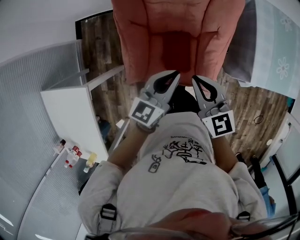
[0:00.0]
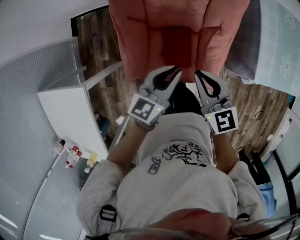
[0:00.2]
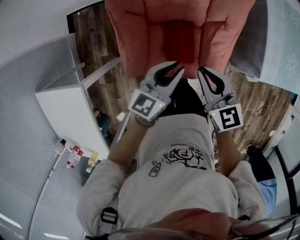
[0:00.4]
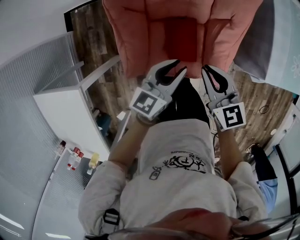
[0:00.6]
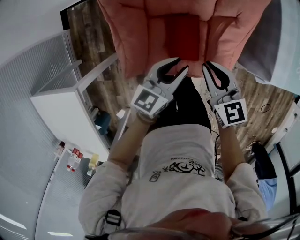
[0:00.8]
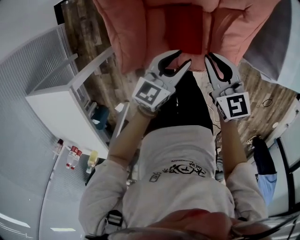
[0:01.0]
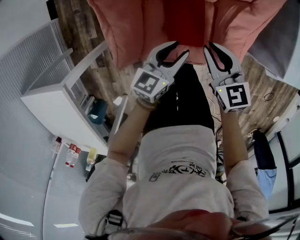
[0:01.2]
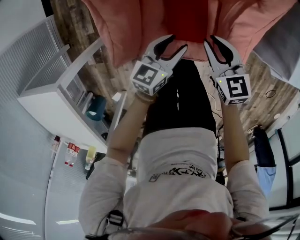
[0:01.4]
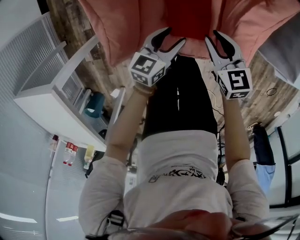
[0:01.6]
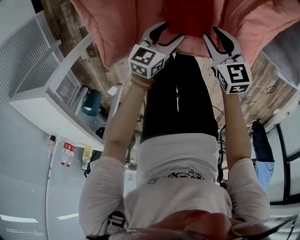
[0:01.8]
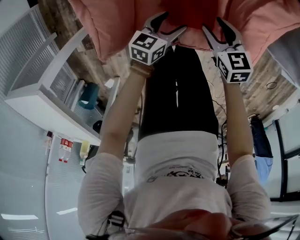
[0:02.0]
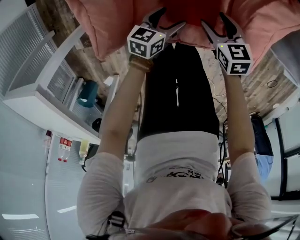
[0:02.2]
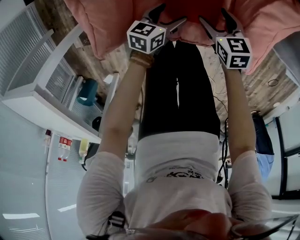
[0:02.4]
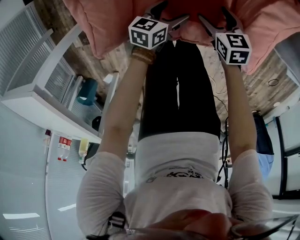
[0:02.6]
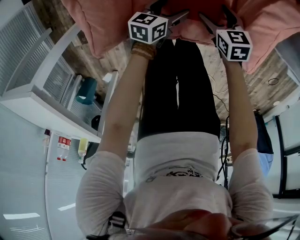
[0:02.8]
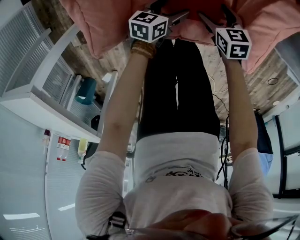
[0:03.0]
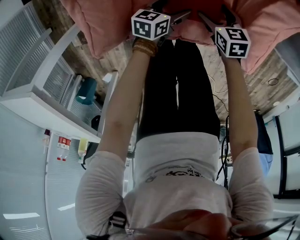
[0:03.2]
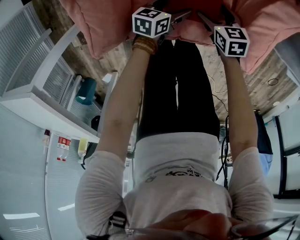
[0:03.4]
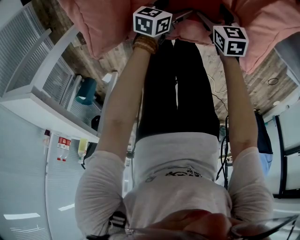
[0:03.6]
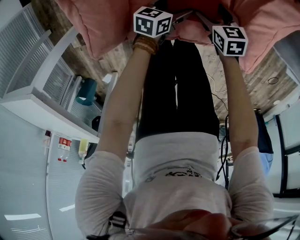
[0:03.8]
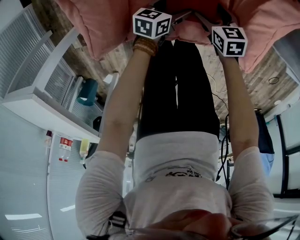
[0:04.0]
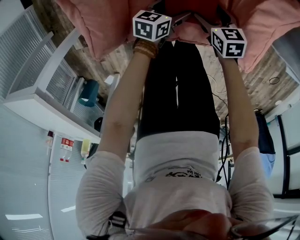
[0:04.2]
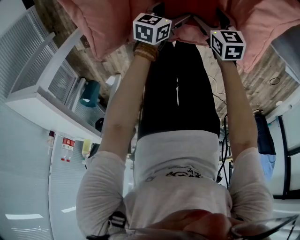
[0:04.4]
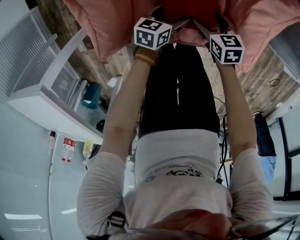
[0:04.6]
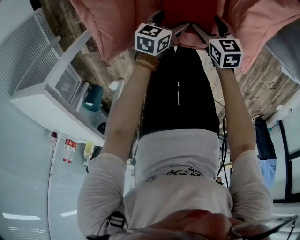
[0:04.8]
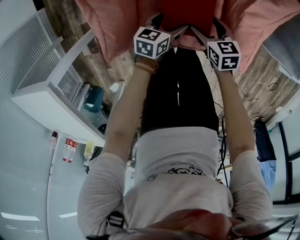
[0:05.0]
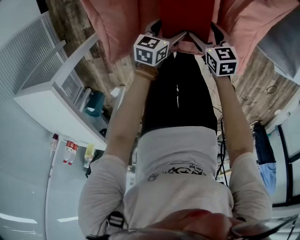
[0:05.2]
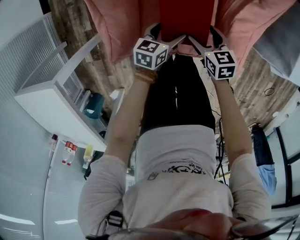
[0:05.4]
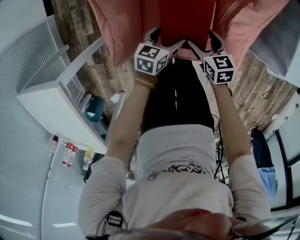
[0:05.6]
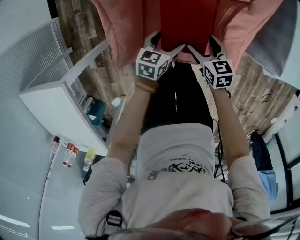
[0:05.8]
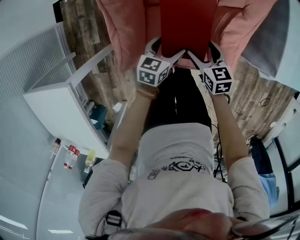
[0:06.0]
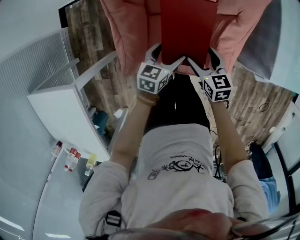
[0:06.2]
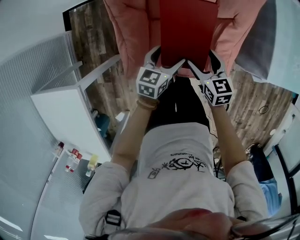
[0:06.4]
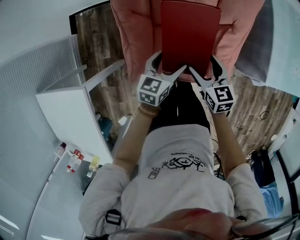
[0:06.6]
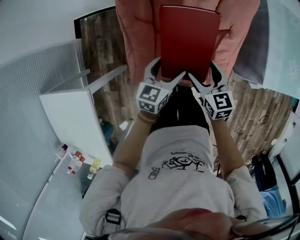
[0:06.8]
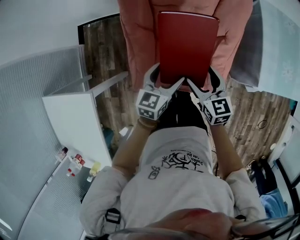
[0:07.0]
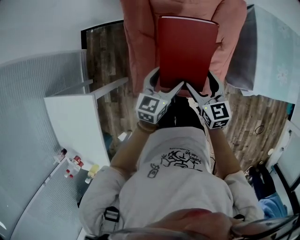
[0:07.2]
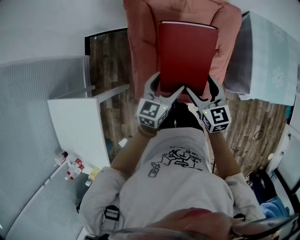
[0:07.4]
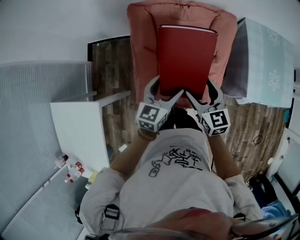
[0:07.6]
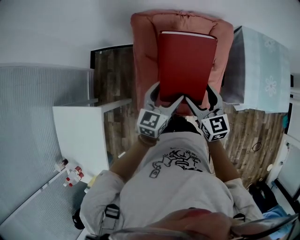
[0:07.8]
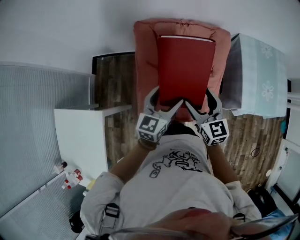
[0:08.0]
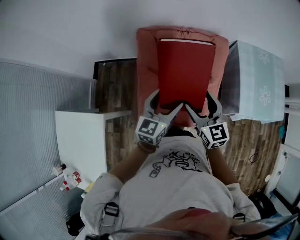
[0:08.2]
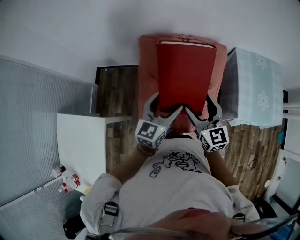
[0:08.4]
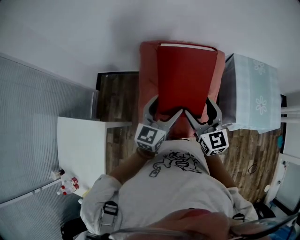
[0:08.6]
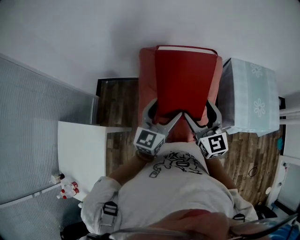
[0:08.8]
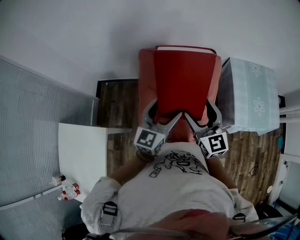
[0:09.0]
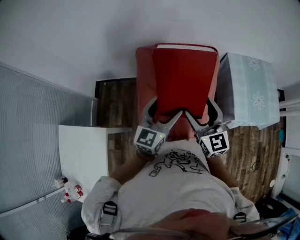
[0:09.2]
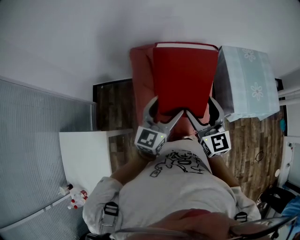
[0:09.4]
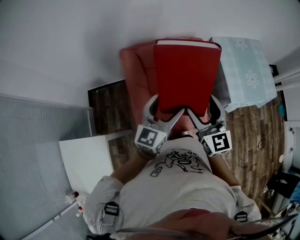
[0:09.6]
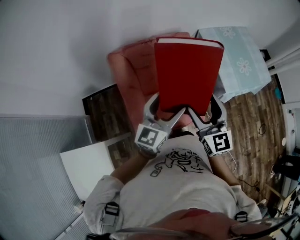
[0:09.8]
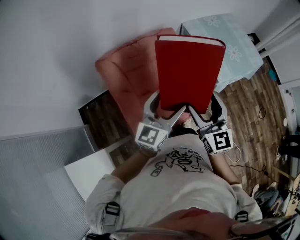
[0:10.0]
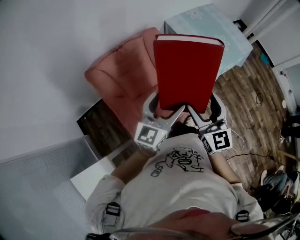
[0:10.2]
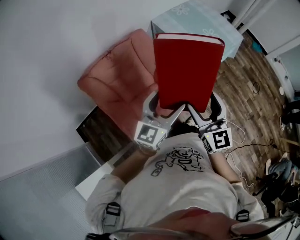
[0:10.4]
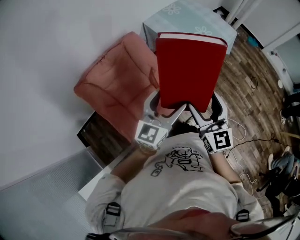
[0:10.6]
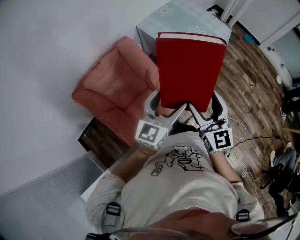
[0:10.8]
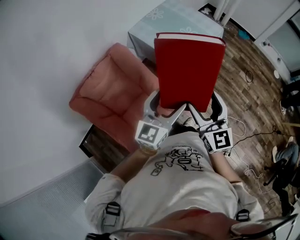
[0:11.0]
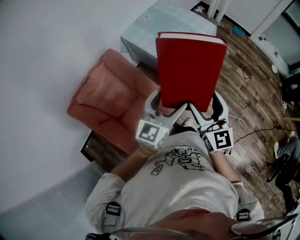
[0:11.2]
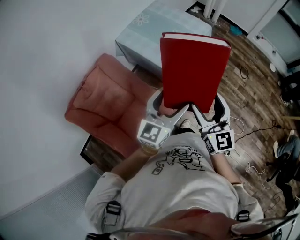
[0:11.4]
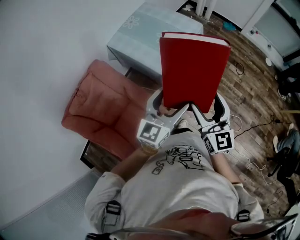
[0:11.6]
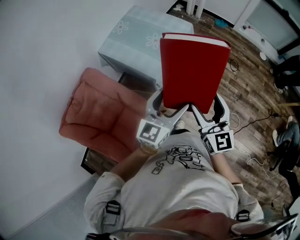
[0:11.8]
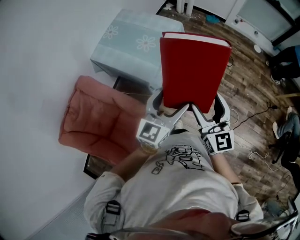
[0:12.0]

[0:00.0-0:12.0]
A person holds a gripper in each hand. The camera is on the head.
0:00.0 to 0:01.6: The grippers both shift downward by some 40 cm. The right gripper turns by approximately 20 degrees. Meanwhile the left gripper changes its angle by about 20 degrees, and opens.
0:01.6 to 0:03.0: Both grippers travel together downward, some 20 cm. The right gripper opens, while the left gripper opens up.
0:03.0 to 0:04.4: There are only small adjustments of the grippers.
0:04.4 to 0:06.0: Both grippers travel together upward, some 25 cm.
0:06.0 to 0:07.6: The grippers both shift upward by approximately 40 cm. The right gripper changes its angle by approximately 20 degrees. The left gripper changes its angle by roughly 20 degrees.
0:07.6 to 0:09.0: Both grippers travel together upward, some 20 cm. The right gripper changes its angle by roughly 20 degrees.
0:09.0 to 0:10.4: The left gripper moves roughly 20 cm, and rotates some 40 degrees; the right gripper shifts by some 25 cm, and rotates approximately 40 degrees.
0:10.4 to 0:12.0: The left gripper shifts by approximately 40 cm, and swivels approximately 30 degrees. Meanwhile the right gripper changes place by some 35 cm, and changes its angle by some 30 degrees.

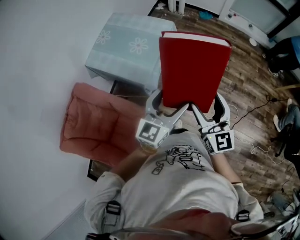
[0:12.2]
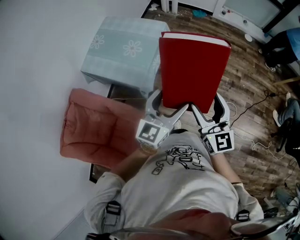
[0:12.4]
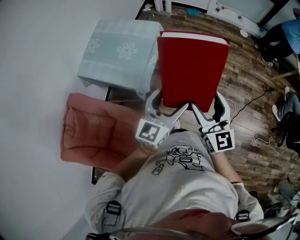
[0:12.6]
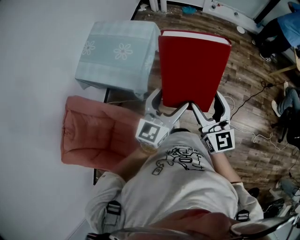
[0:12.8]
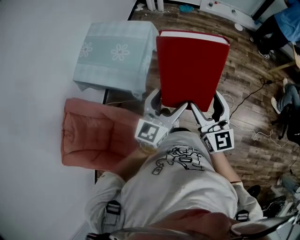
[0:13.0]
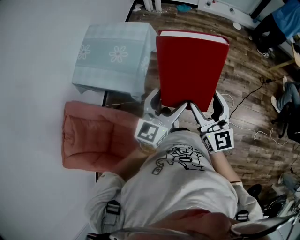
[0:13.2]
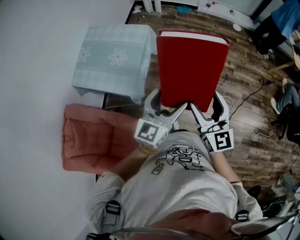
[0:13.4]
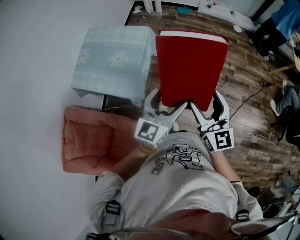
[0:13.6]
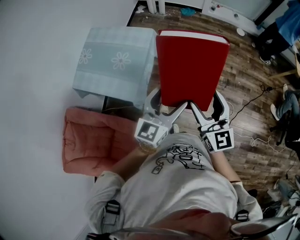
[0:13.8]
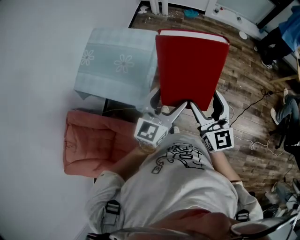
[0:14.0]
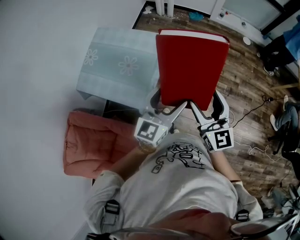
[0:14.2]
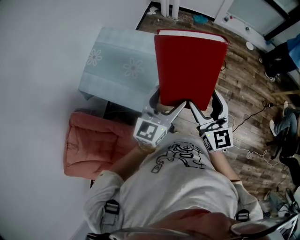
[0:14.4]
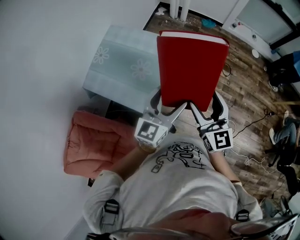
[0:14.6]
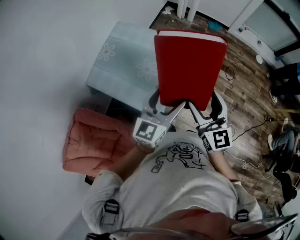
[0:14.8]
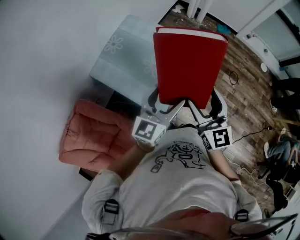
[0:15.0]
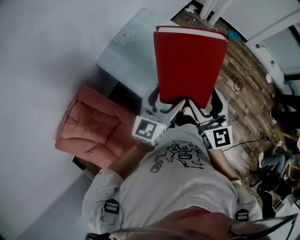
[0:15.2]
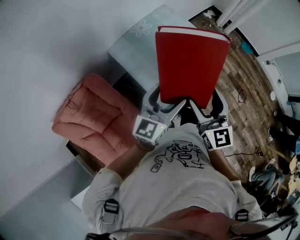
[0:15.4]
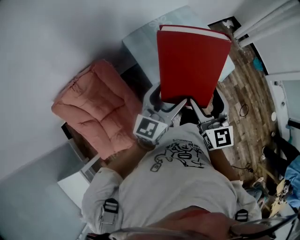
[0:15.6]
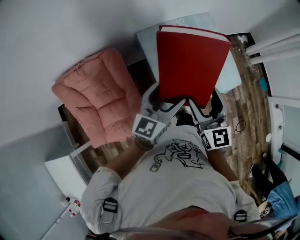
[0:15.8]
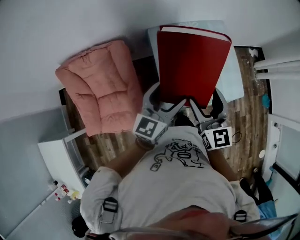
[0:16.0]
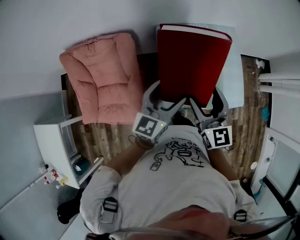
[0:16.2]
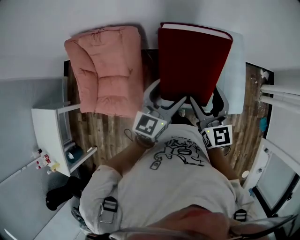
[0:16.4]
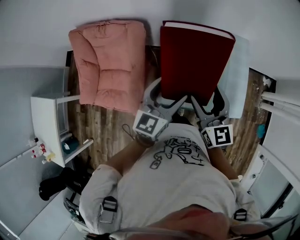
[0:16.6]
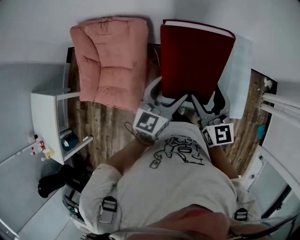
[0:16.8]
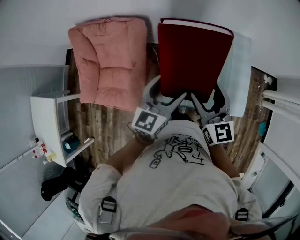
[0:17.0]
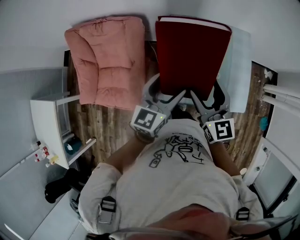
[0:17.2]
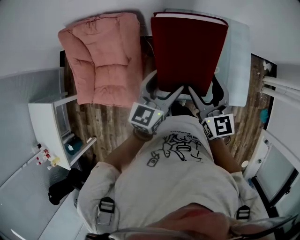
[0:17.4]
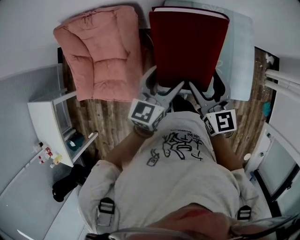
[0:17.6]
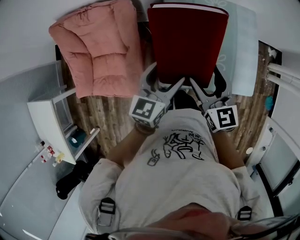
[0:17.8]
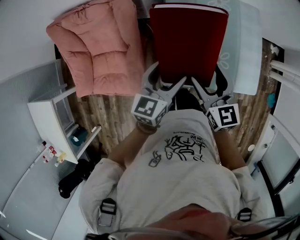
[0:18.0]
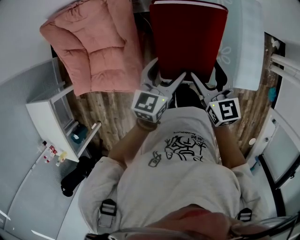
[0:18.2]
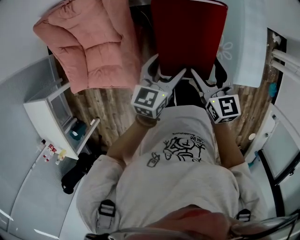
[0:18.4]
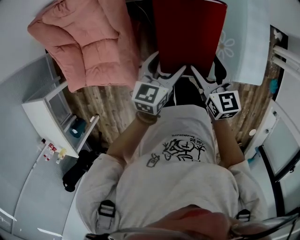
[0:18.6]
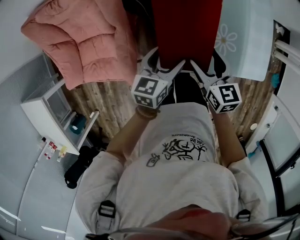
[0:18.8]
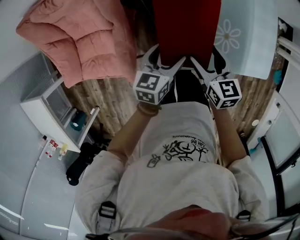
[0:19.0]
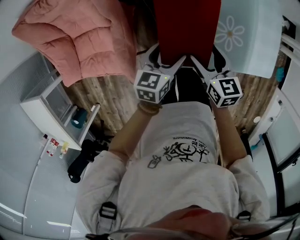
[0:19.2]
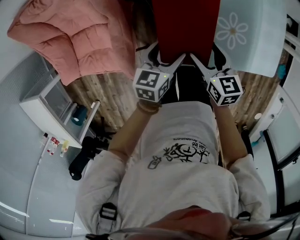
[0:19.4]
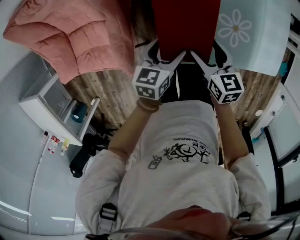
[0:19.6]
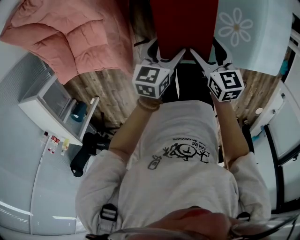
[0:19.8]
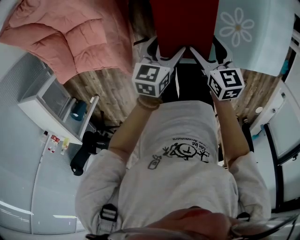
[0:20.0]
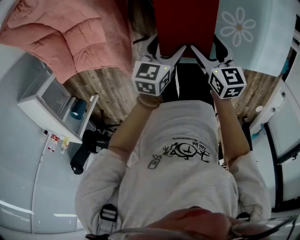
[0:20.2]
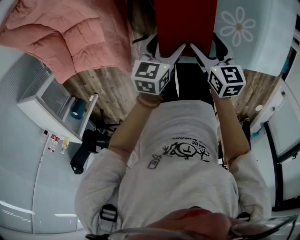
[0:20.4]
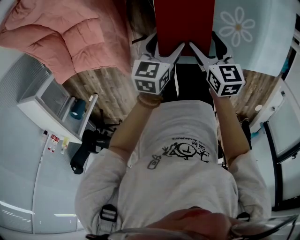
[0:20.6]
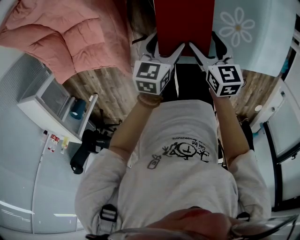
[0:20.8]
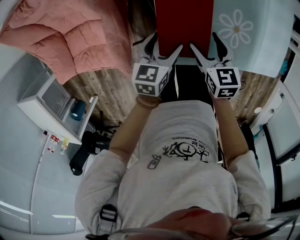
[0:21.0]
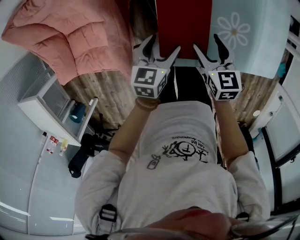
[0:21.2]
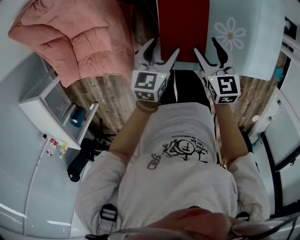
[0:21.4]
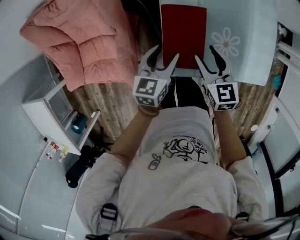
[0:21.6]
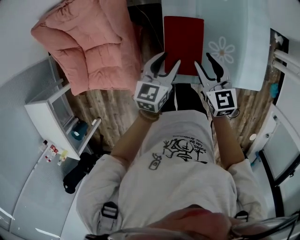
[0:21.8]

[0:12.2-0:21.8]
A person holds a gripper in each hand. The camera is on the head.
0:12.2 to 0:13.8: Both grippers move forward and to the right, about 15 cm.
0:13.8 to 0:15.4: The left gripper changes place by approximately 35 cm, and turns by about 30 degrees; the right gripper changes place by roughly 40 cm, and rotates about 30 degrees.
0:15.4 to 0:17.0: The right gripper changes place by about 15 cm, and swivels approximately 50 degrees, while the left gripper ends up some 10 cm from where it was, and swivels approximately 50 degrees.
0:17.0 to 0:18.6: The grippers both shift downward by approximately 25 cm. The left gripper swivels roughly 20 degrees; the right gripper rotates approximately 20 degrees.
0:18.6 to 0:20.2: The grippers both shift downward by approximately 20 cm.
0:20.2 to 0:21.8: Both grippers travel together upward, about 20 cm. The right gripper rotates approximately 30 degrees, and closes up. The left gripper closes its fingers.

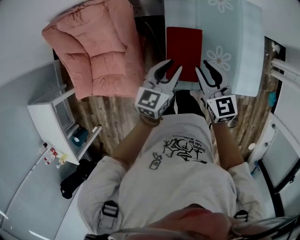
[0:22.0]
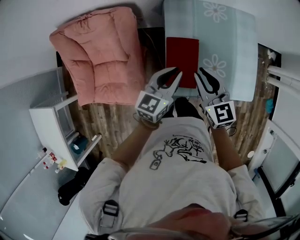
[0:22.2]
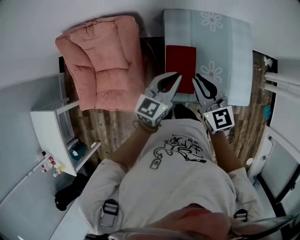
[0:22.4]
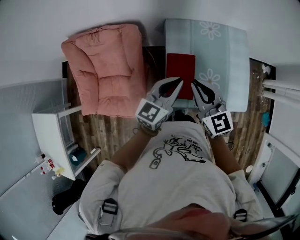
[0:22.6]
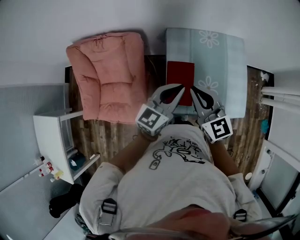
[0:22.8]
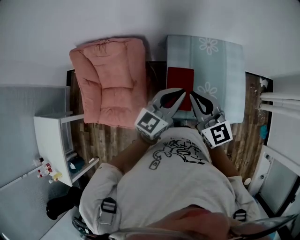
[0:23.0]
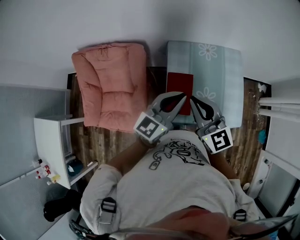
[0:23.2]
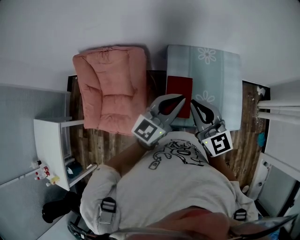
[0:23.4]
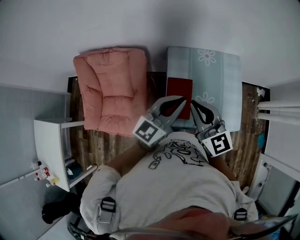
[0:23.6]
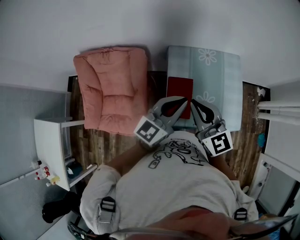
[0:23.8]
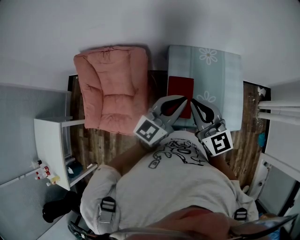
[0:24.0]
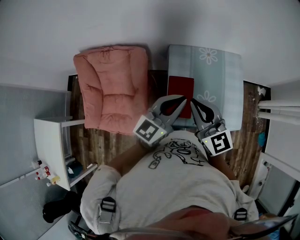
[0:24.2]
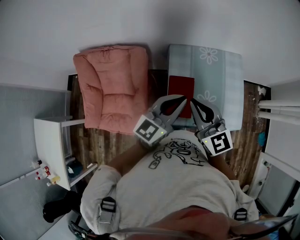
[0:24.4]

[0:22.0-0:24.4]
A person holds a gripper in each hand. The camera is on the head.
0:22.0 to 0:23.2: The two grippers go about 25 cm upward. The right gripper turns by about 20 degrees; the left gripper changes its angle by about 30 degrees.
0:23.2 to 0:24.4: The grippers make only small movements.
